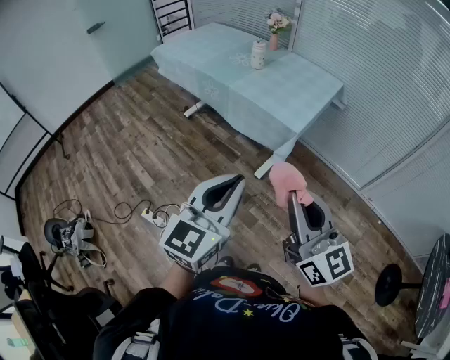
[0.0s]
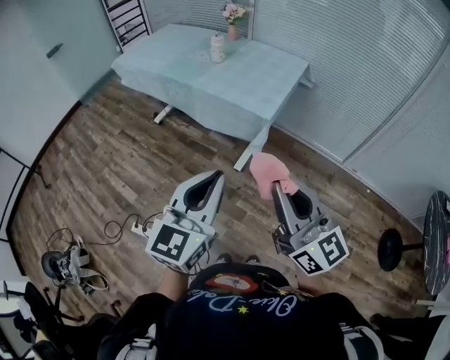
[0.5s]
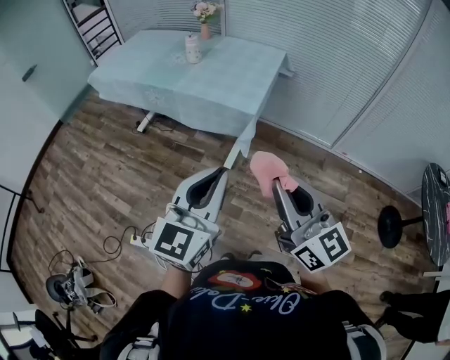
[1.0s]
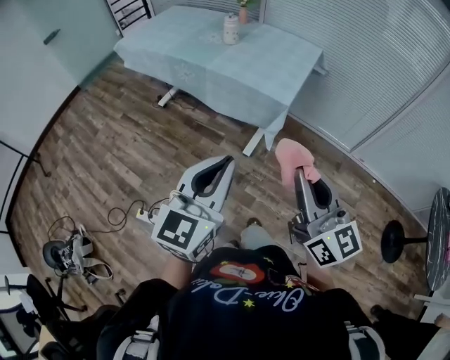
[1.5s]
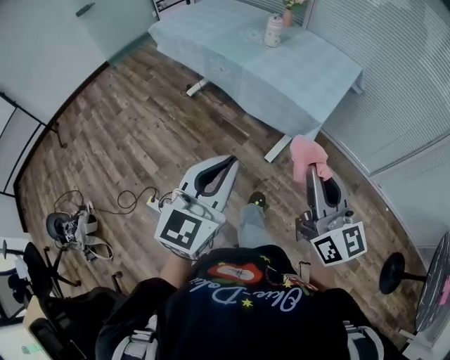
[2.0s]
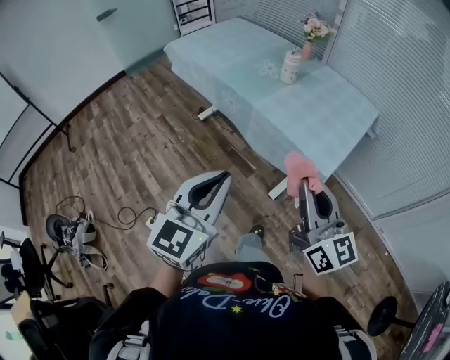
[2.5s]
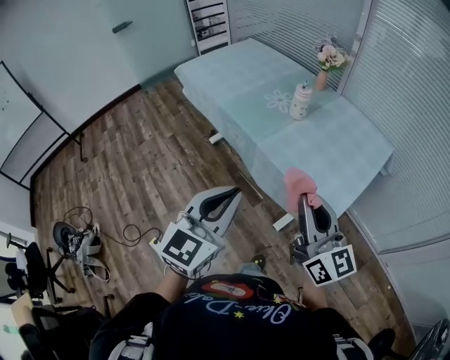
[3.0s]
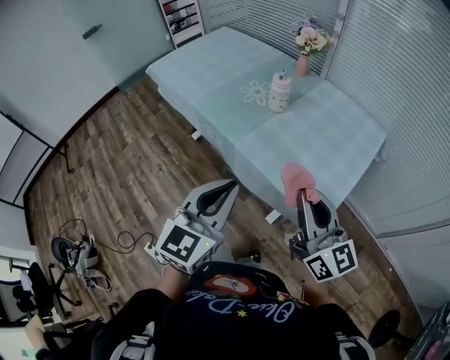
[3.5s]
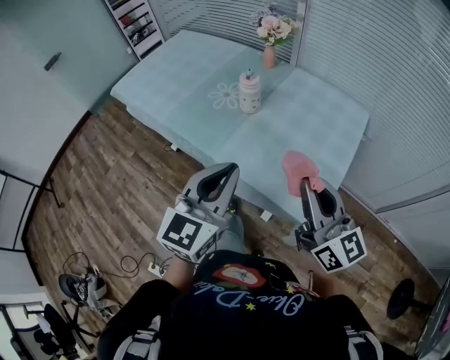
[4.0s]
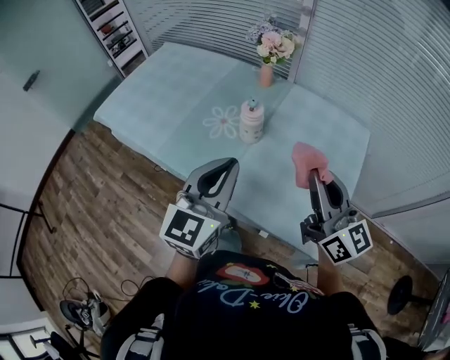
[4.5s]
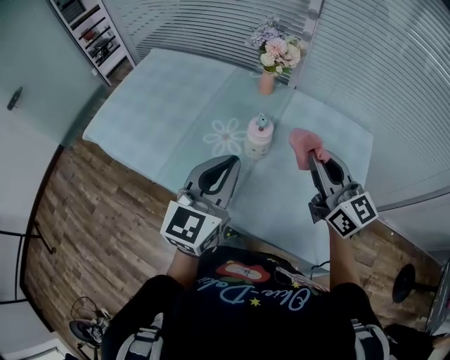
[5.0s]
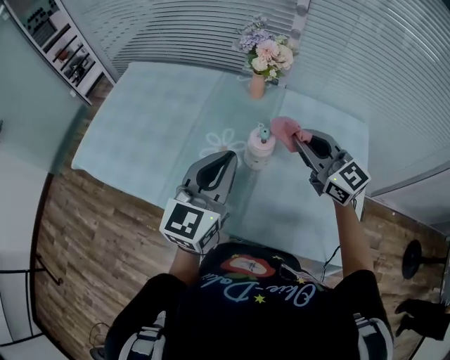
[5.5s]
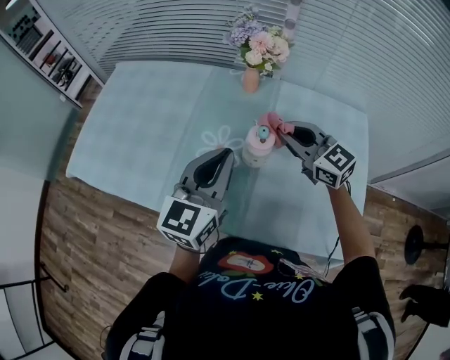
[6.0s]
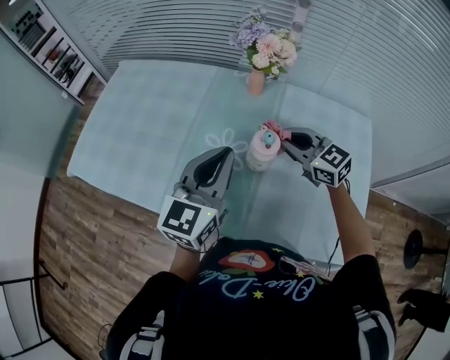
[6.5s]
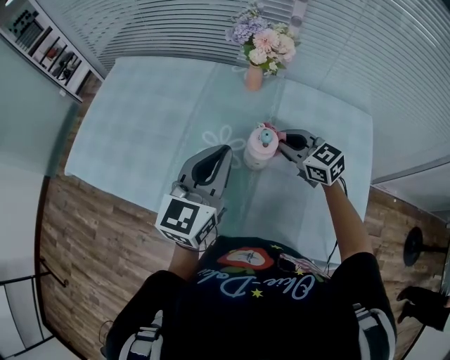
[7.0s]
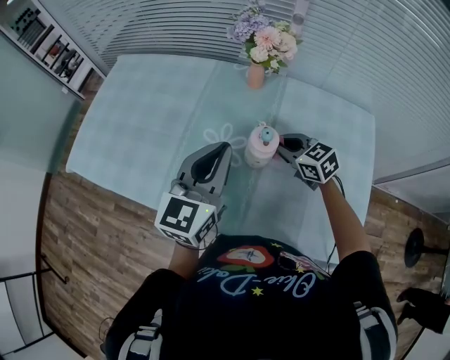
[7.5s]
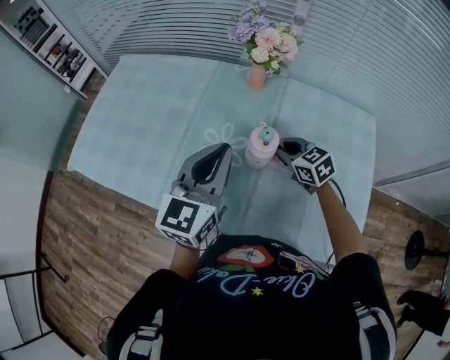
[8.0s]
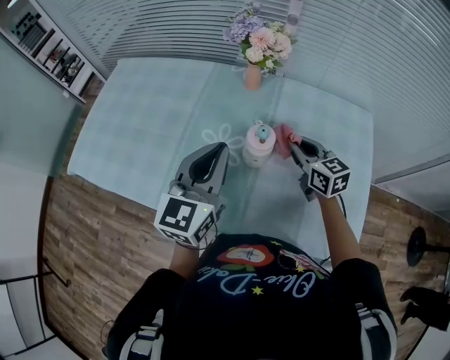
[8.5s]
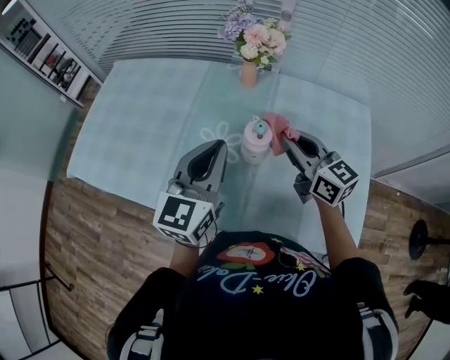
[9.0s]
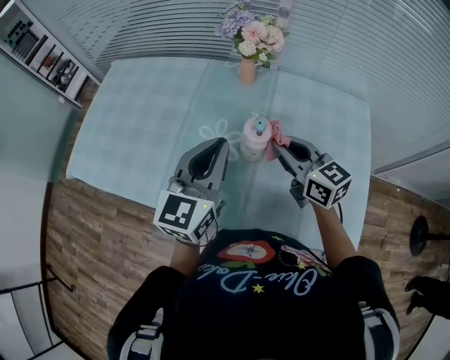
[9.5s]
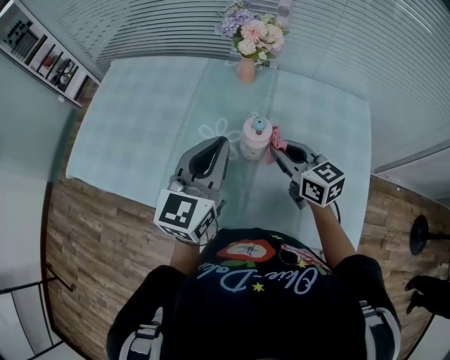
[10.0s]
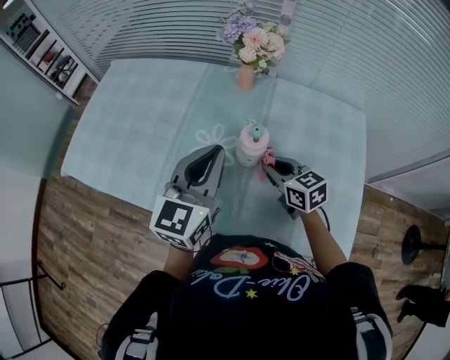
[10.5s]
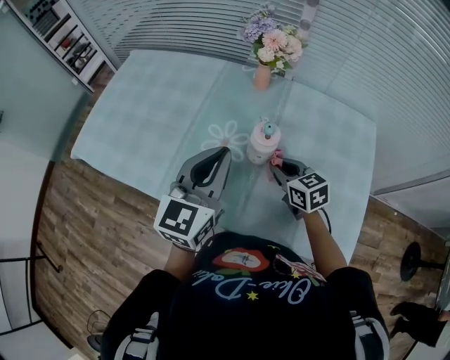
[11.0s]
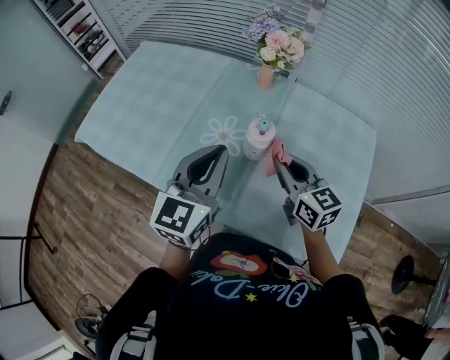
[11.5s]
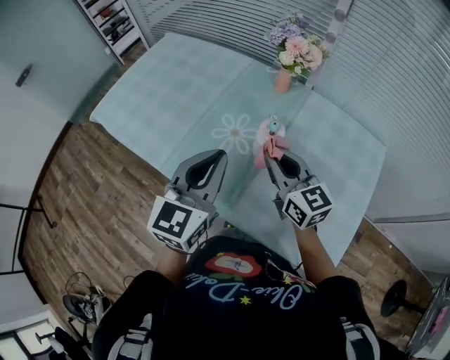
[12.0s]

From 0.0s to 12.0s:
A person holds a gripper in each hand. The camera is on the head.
From 0.0s to 2.0s: The left gripper travels to the left and forward by roughly 10 cm. The right gripper shifts approximately 10 cm forward and to the left.
From 2.0s to 4.0s: The two grippers go about 40 cm forward.
From 4.0s to 6.0s: Both grippers move forward, roughly 35 cm. The right gripper rotates some 30 degrees.
From 6.0s to 8.0s: The right gripper travels downward by roughly 15 cm, and changes its angle by approximately 30 degrees.
From 8.0s to 10.0s: The right gripper heads upward and backward, covering roughly 10 cm, and turns by roughly 20 degrees.
From 10.0s to 12.0s: The right gripper shifts approximately 5 cm upward, while the left gripper goes some 5 cm backward.

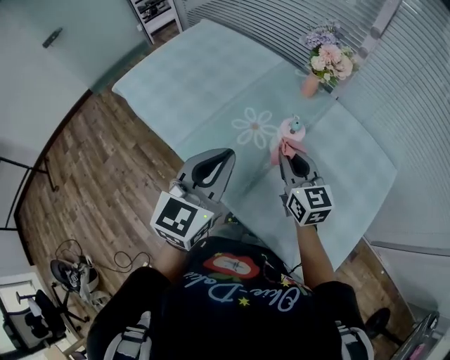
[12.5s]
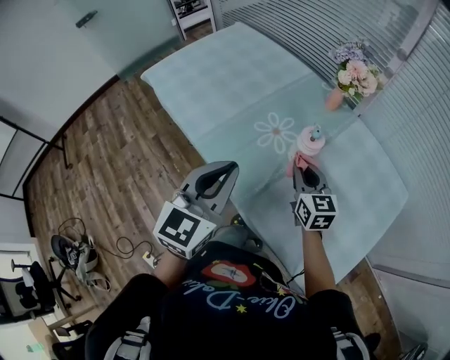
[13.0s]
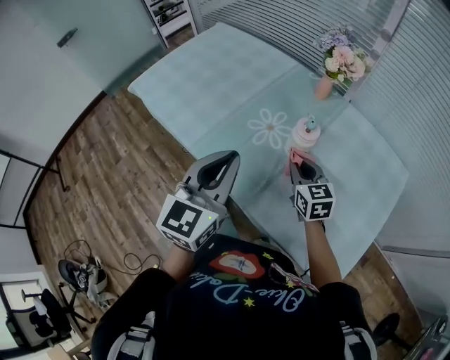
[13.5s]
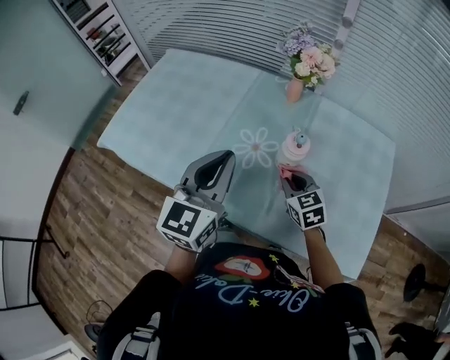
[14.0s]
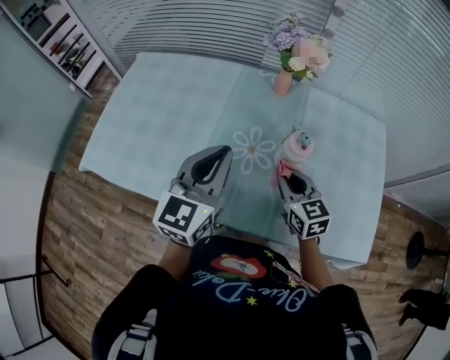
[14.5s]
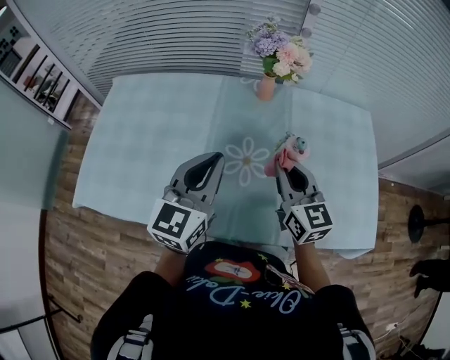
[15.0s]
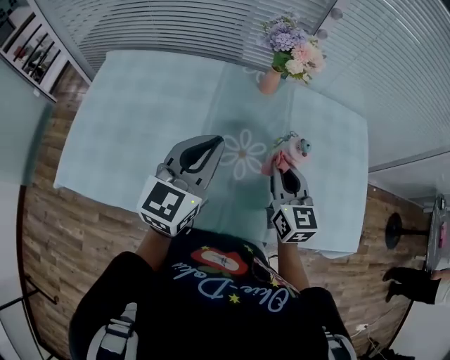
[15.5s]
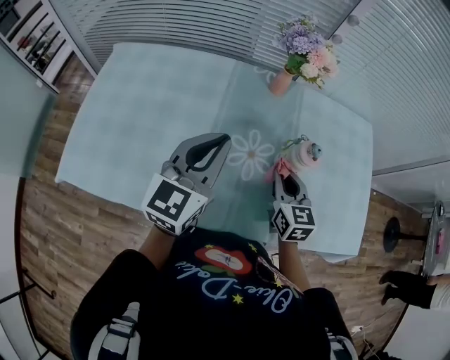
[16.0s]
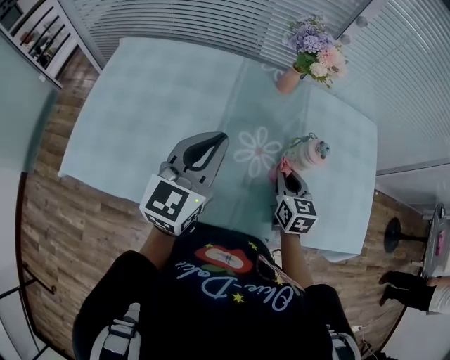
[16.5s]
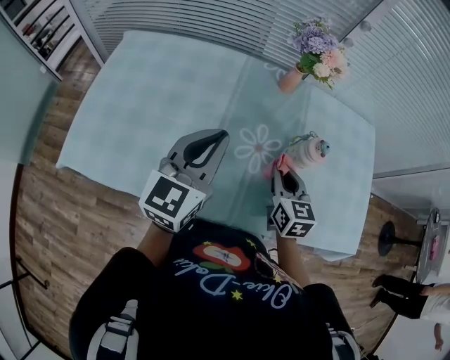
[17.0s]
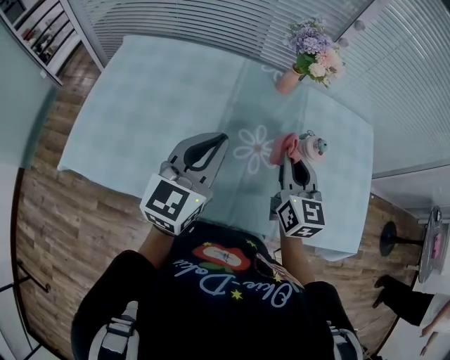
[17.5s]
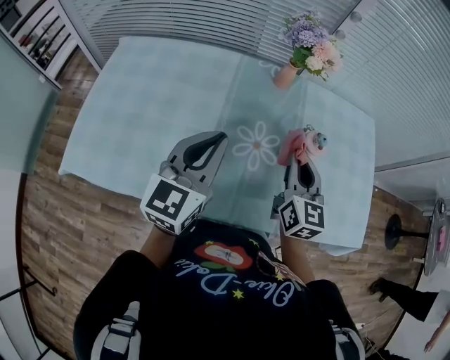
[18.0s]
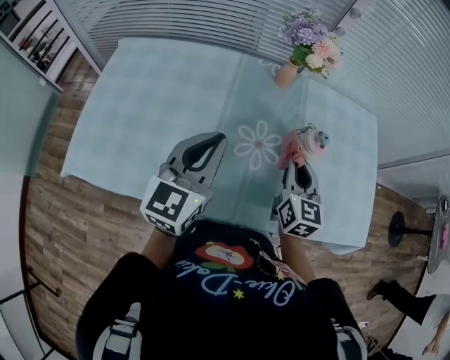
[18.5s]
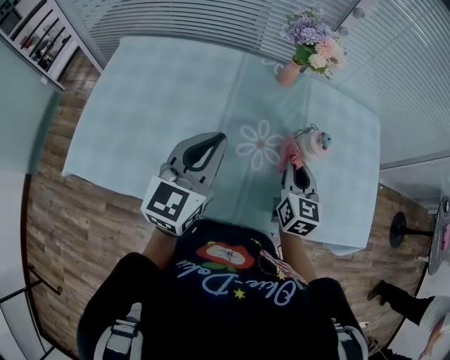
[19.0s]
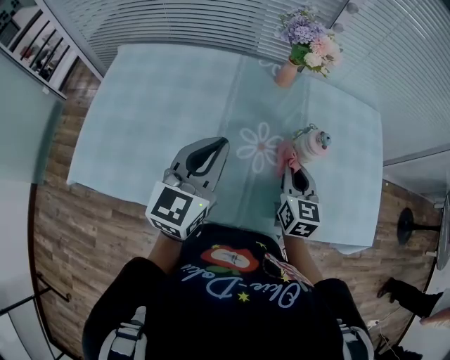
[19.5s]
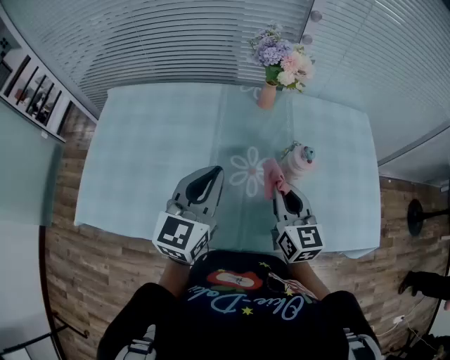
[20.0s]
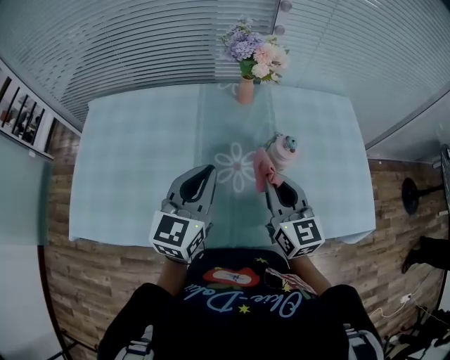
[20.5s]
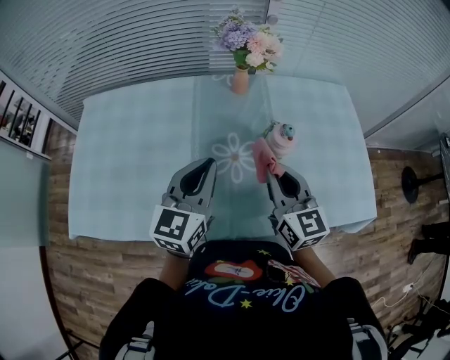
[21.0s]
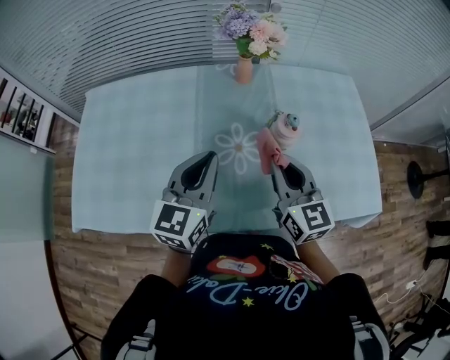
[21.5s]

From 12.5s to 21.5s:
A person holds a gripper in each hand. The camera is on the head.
From 12.5s to 14.5s: The right gripper goes roughly 5 cm downward, and swivels roughly 30 degrees. The left gripper shifts by some 15 cm, and swivels approximately 20 degrees.
From 14.5s to 17.0s: The left gripper heads to the left, covering some 10 cm, while the right gripper moves about 10 cm upward and comes back.
From 17.0s to 19.5s: The right gripper travels upward and back again, about 10 cm each way.
From 19.5s to 21.5s: The right gripper moves upward, roughly 10 cm.

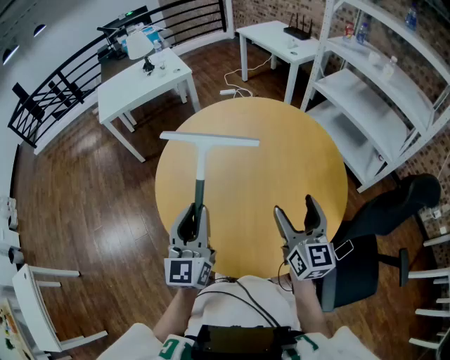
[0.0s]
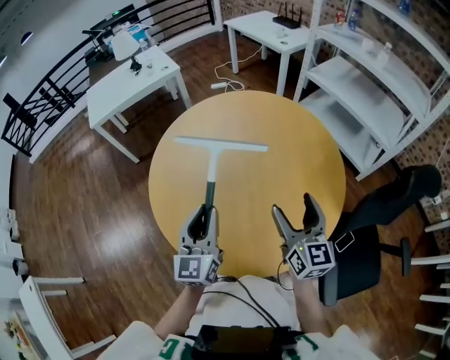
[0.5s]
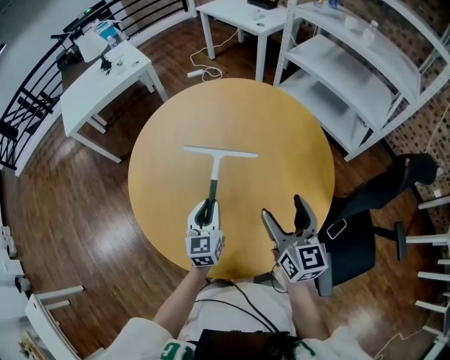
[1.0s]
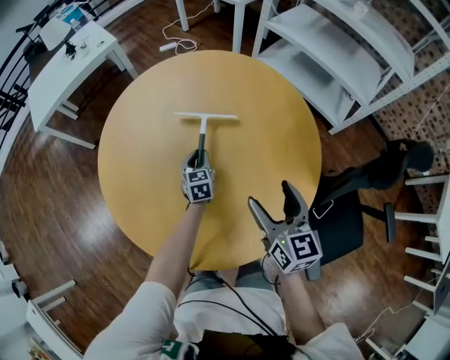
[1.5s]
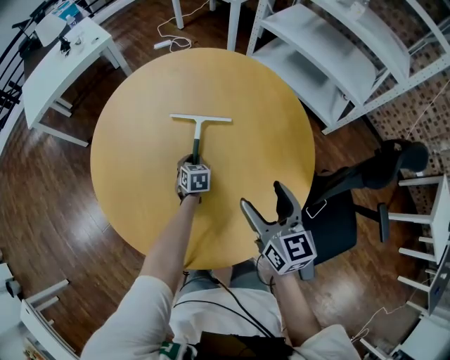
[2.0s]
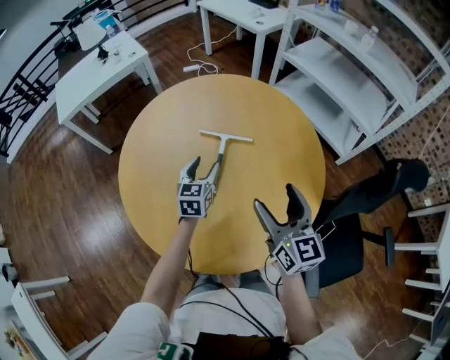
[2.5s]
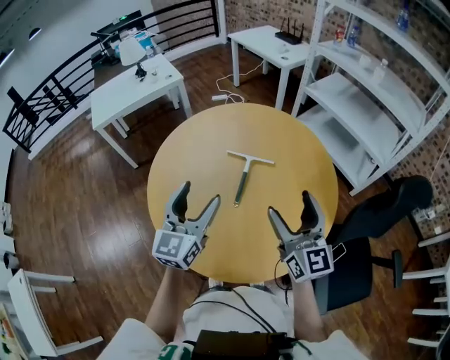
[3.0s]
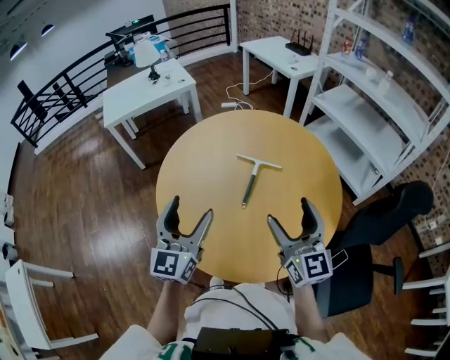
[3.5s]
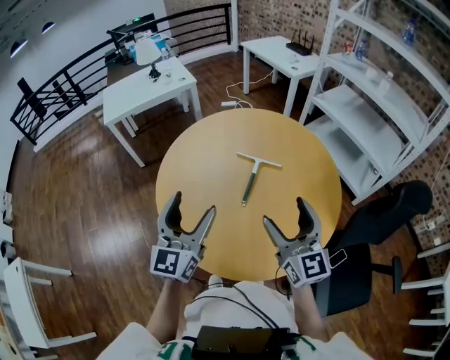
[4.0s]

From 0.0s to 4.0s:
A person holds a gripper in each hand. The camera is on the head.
From 0.0s to 2.0s: The left gripper goes roughly 50 cm downward and forward, and tilts its fingers about 50 degrees downward, while the right gripper is displaced downward and to the right by about 10 cm.
From 2.0s to 4.0s: The left gripper shifts roughly 50 cm upward and backward, tilts its fingers roughly 60 degrees upward, and opens its fingers. The right gripper moves upward, to the left and backward, some 20 cm, and changes its angle by roughly 30 degrees.

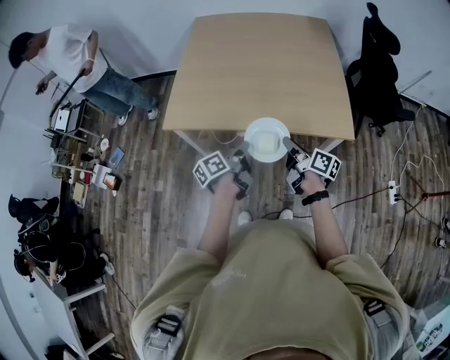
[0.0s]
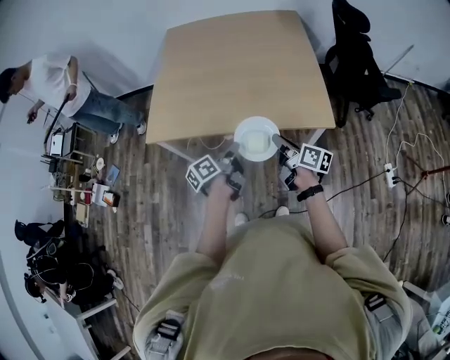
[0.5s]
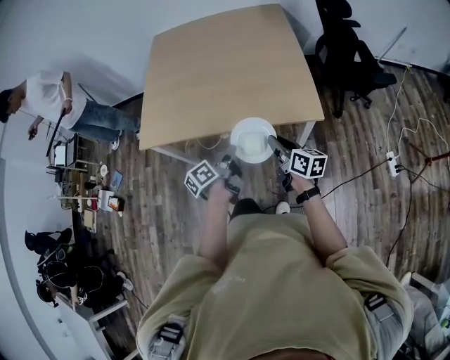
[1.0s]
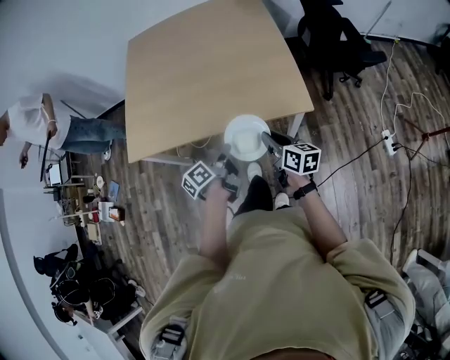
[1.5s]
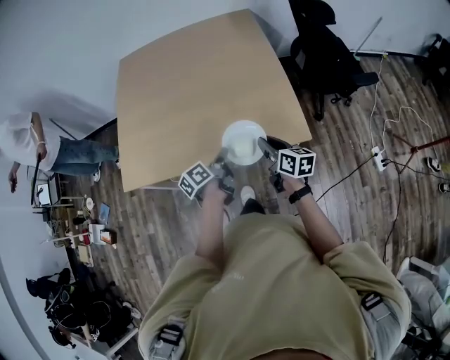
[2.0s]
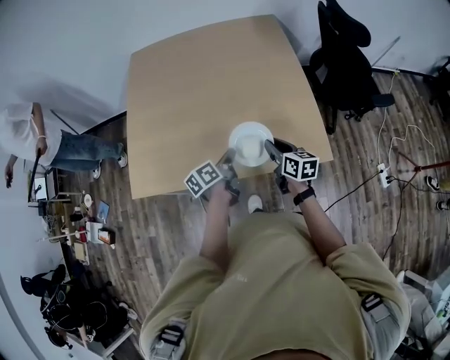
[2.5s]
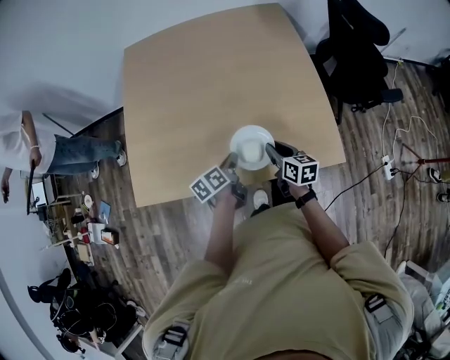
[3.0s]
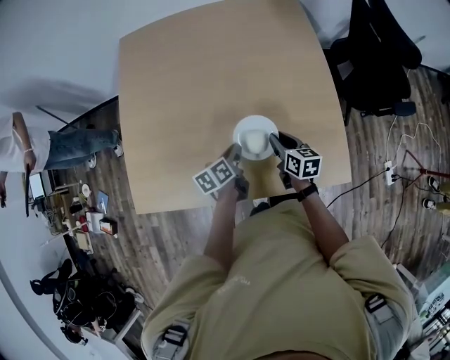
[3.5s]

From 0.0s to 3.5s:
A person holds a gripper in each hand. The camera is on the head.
From 0.0s to 2.0s: The two grippers go approximately 20 cm to the right and forward. The right gripper turns by approximately 20 degrees.
From 2.0s to 3.5s: The right gripper moves forward and downward, about 25 cm; the left gripper moves forward, about 25 cm.
